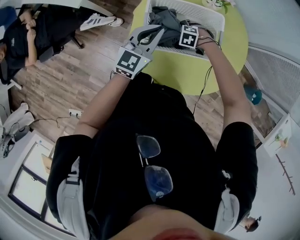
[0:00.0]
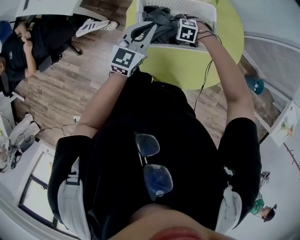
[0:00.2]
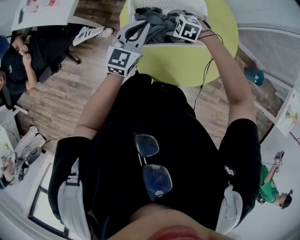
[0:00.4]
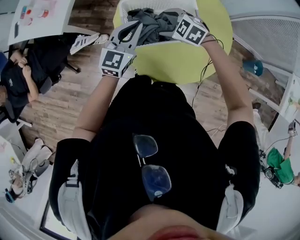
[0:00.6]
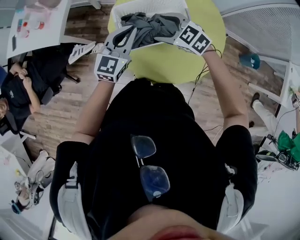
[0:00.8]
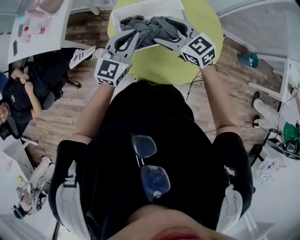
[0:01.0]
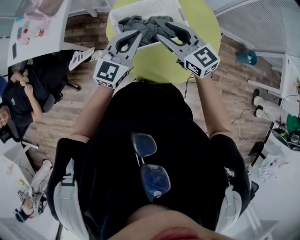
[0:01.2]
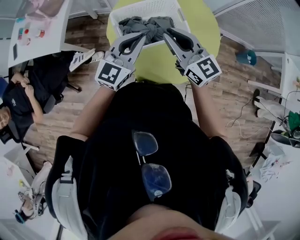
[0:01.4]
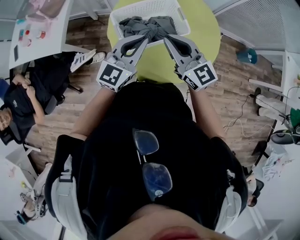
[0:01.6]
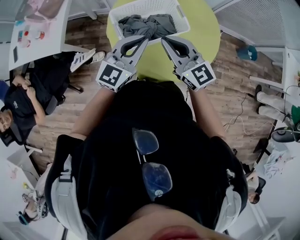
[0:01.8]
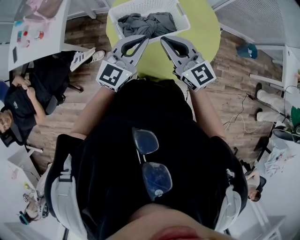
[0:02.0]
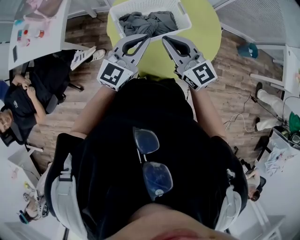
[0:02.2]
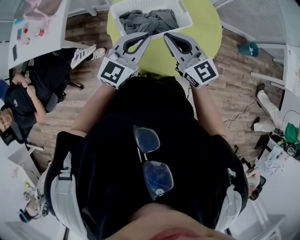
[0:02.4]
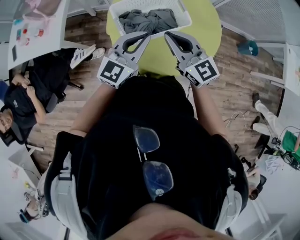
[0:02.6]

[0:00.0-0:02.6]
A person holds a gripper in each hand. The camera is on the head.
0:00.0 to 0:01.2: The left gripper shifts roughly 5 cm upward, and swivels roughly 20 degrees, while the right gripper goes about 35 cm upward, points its fingers some 70 degrees further upward, and closes up.
0:01.2 to 0:02.6: Both grippers move backward, about 5 cm. The right gripper closes its fingers.

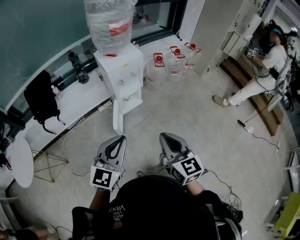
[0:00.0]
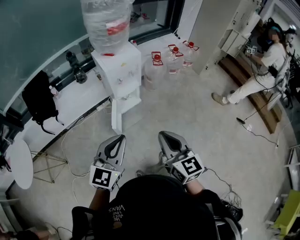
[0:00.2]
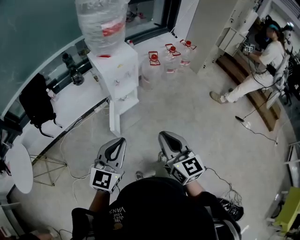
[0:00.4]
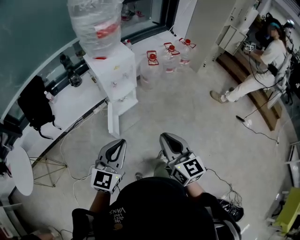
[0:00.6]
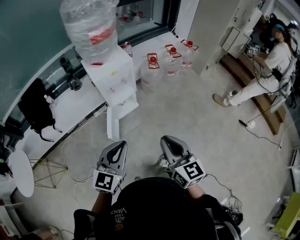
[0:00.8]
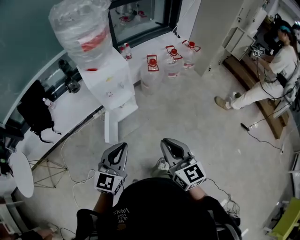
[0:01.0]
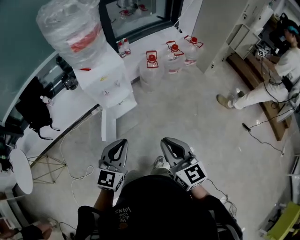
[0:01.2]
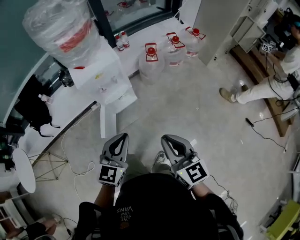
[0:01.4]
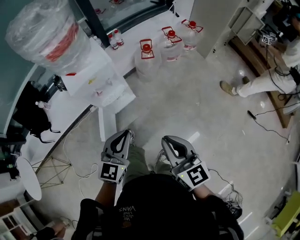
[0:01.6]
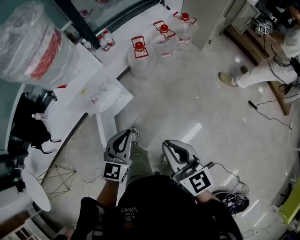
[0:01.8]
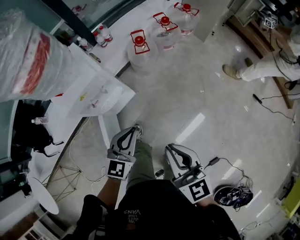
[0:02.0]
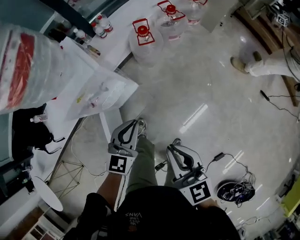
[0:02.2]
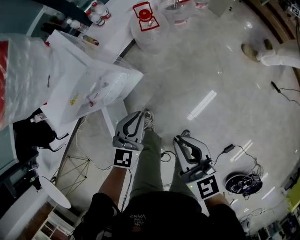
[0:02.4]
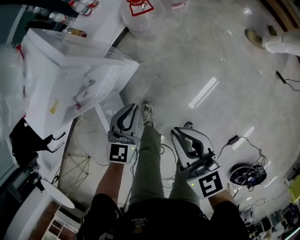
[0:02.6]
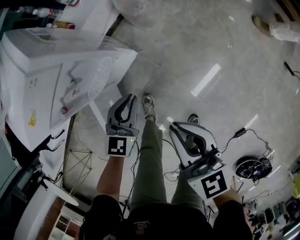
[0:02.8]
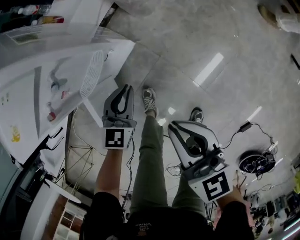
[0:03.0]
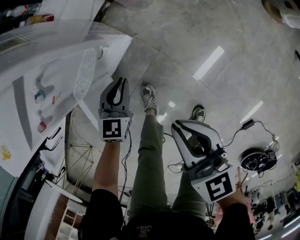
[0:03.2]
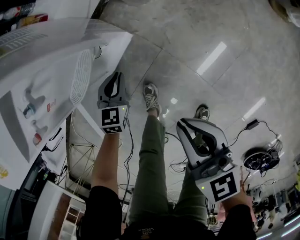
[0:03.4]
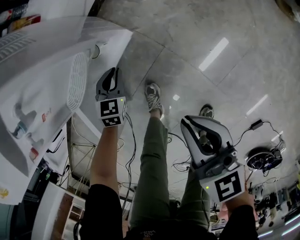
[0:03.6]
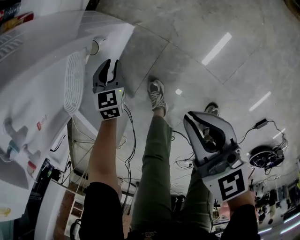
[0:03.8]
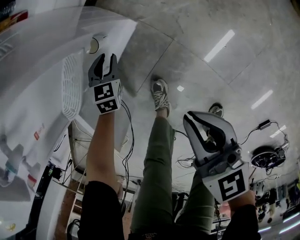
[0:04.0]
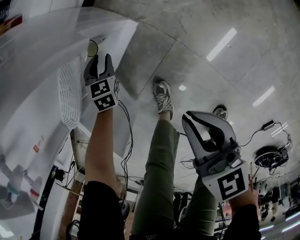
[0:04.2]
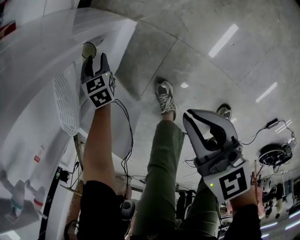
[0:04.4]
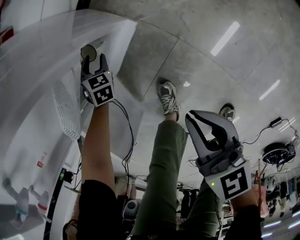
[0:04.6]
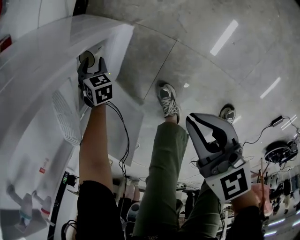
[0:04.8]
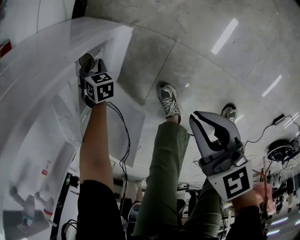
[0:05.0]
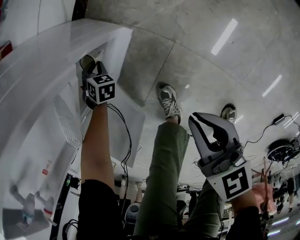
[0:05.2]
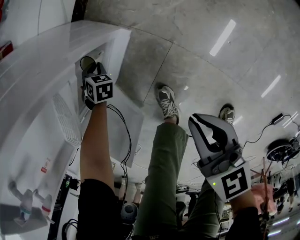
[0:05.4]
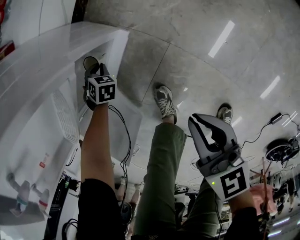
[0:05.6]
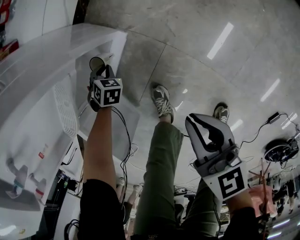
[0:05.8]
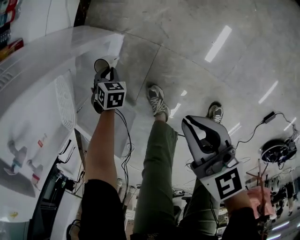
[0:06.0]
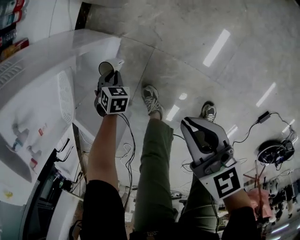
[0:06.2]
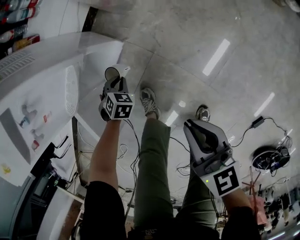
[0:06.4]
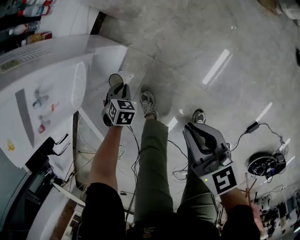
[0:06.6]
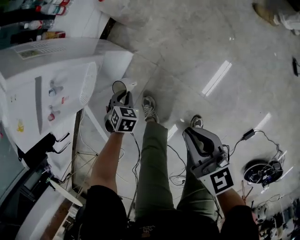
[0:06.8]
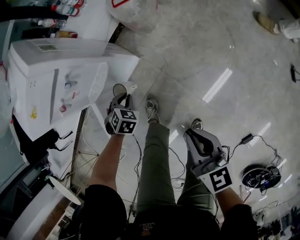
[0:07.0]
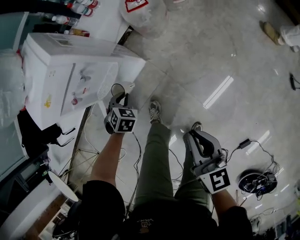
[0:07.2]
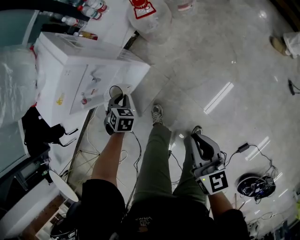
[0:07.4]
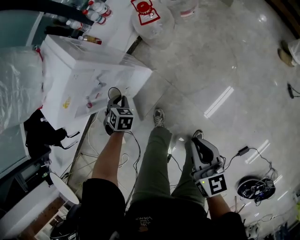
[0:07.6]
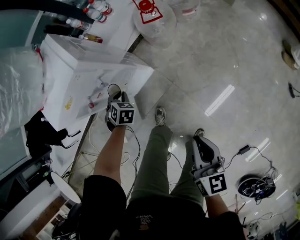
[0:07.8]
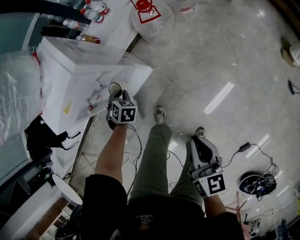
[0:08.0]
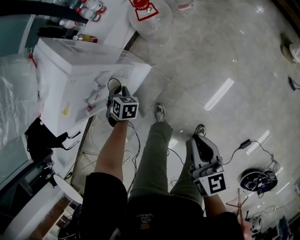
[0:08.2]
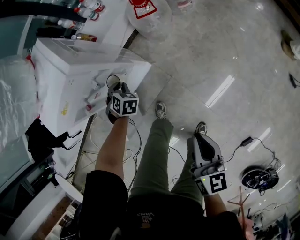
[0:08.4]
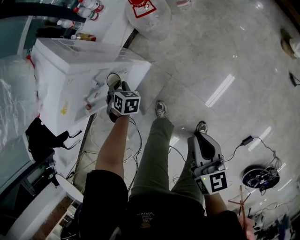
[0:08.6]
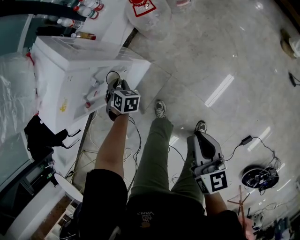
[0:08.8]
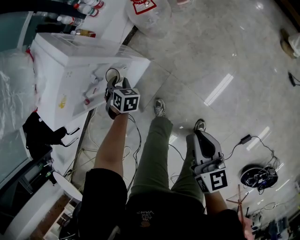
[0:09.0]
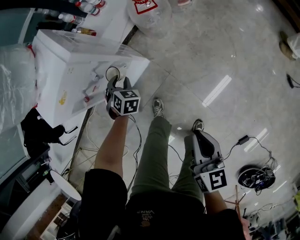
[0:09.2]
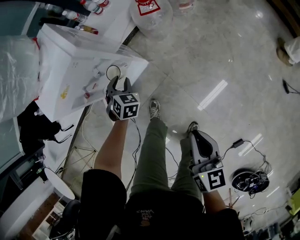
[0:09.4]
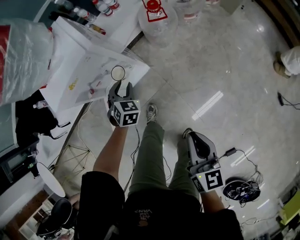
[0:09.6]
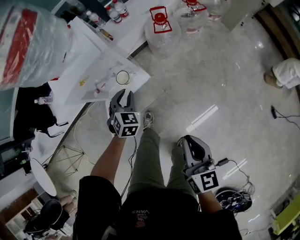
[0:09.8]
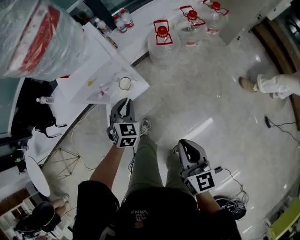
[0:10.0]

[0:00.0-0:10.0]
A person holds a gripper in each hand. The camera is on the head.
0:00.0 to 0:01.4: Both grippers travel together forward and to the right, about 30 cm.
0:01.4 to 0:02.8: The grippers both shift downward and forward by about 40 cm.
0:02.8 to 0:04.2: The left gripper moves downward and to the left, about 40 cm, swivels approximately 30 degrees, and opens. The right gripper is displaced downward by some 30 cm.
0:04.2 to 0:05.8: The left gripper rotates some 30 degrees. The right gripper shifts by approximately 5 cm.
0:05.8 to 0:07.2: The two grippers go roughly 30 cm upward.
0:07.2 to 0:08.6: The left gripper travels forward by roughly 10 cm.
0:08.6 to 0:10.0: The left gripper moves upward and backward, about 25 cm, and swivels about 30 degrees. The right gripper goes some 10 cm upward, and swivels roughly 20 degrees.

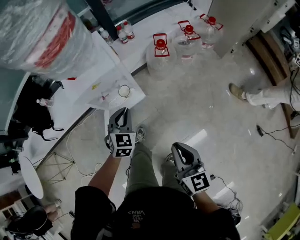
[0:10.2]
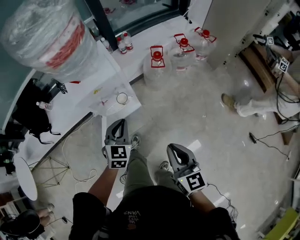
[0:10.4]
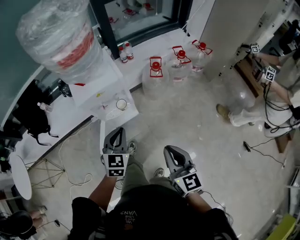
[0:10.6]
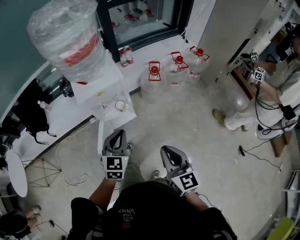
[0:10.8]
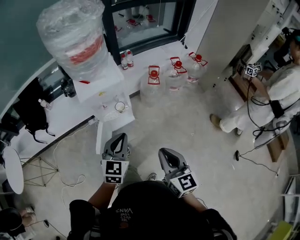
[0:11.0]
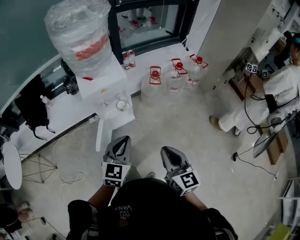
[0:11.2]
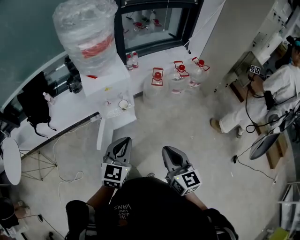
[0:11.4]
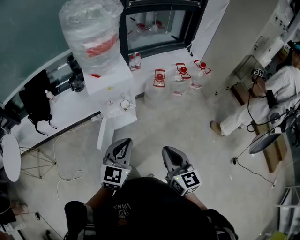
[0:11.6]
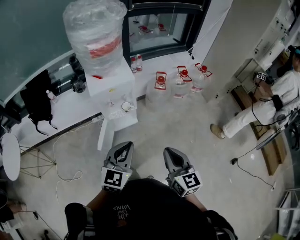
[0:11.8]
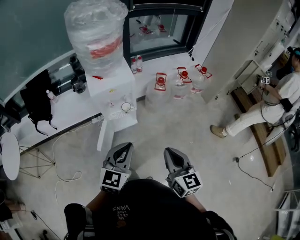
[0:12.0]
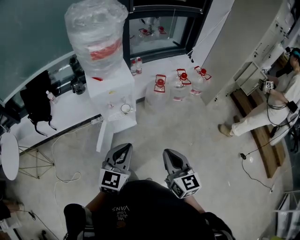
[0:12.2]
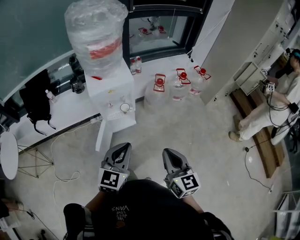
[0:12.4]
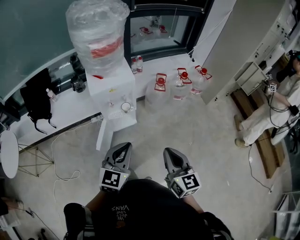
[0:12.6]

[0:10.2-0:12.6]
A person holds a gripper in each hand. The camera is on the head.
0:10.2 to 0:11.4: The left gripper heads backward and upward, covering approximately 30 cm, and changes its angle by some 20 degrees. Meanwhile the right gripper moves upward and backward, roughly 15 cm.
0:11.4 to 0:12.6: The grippers move only a little.

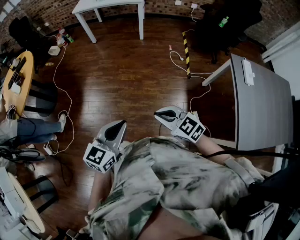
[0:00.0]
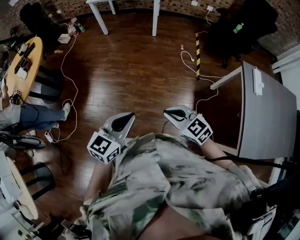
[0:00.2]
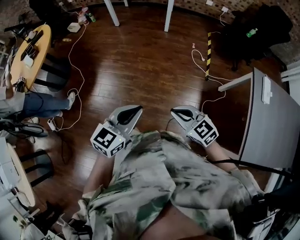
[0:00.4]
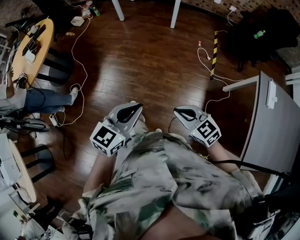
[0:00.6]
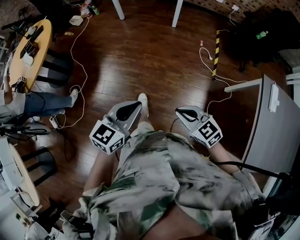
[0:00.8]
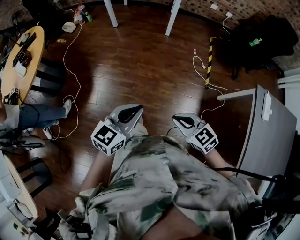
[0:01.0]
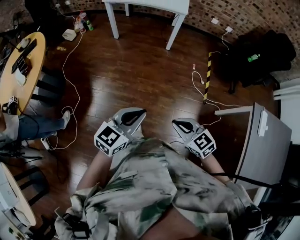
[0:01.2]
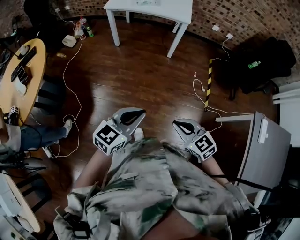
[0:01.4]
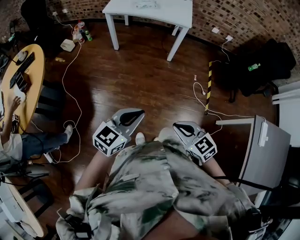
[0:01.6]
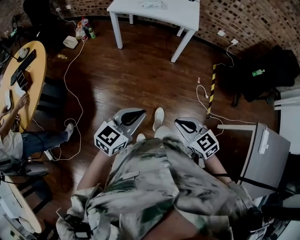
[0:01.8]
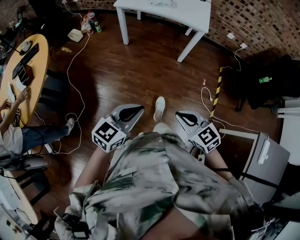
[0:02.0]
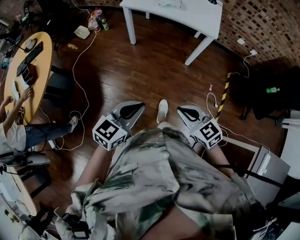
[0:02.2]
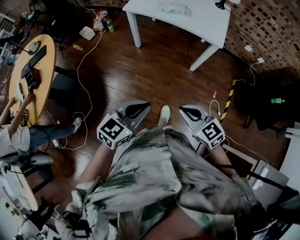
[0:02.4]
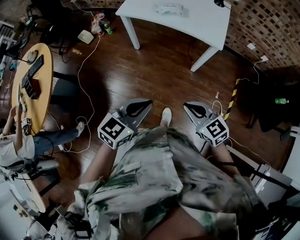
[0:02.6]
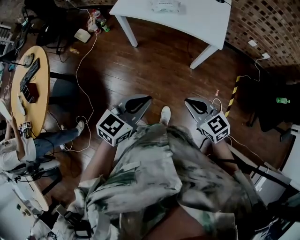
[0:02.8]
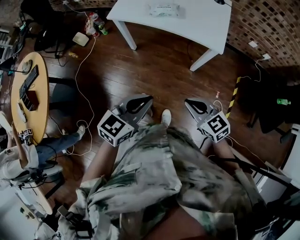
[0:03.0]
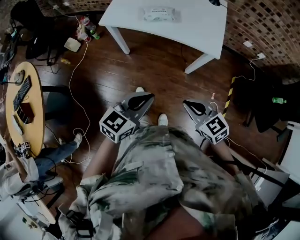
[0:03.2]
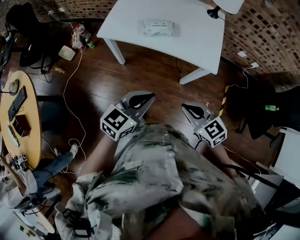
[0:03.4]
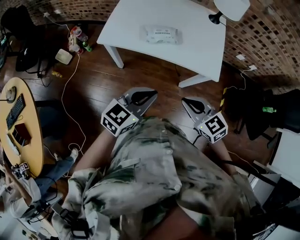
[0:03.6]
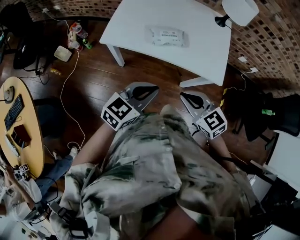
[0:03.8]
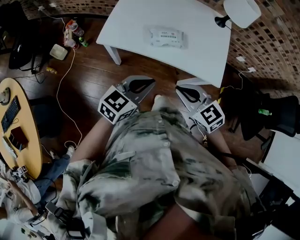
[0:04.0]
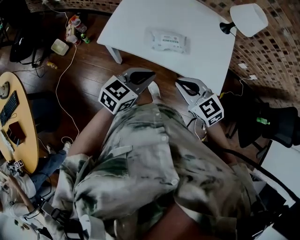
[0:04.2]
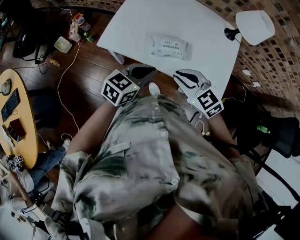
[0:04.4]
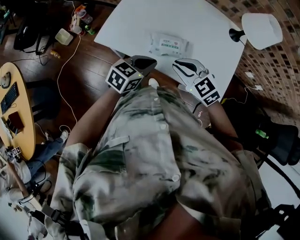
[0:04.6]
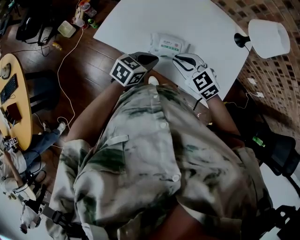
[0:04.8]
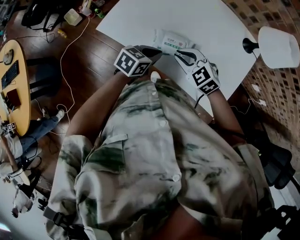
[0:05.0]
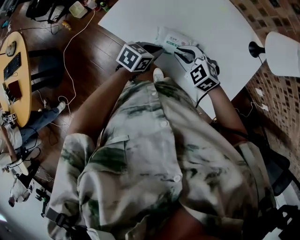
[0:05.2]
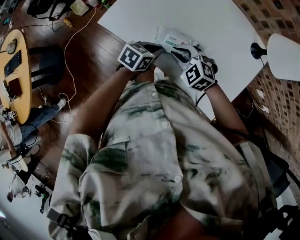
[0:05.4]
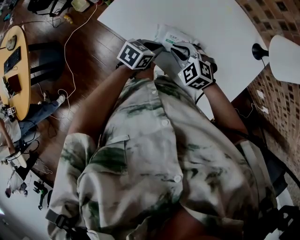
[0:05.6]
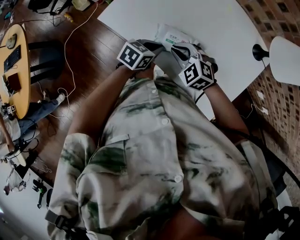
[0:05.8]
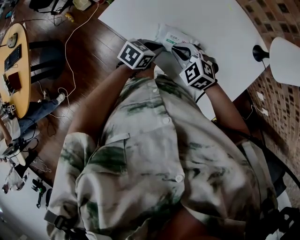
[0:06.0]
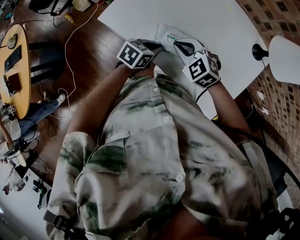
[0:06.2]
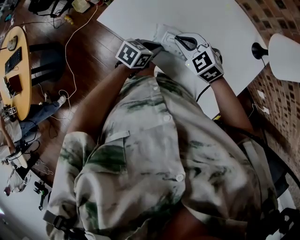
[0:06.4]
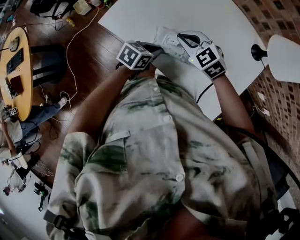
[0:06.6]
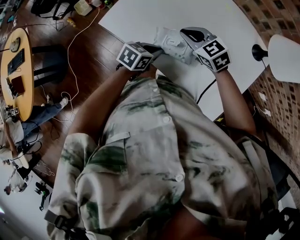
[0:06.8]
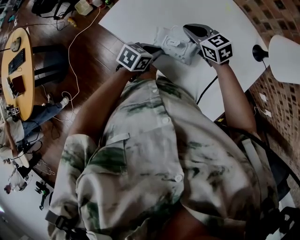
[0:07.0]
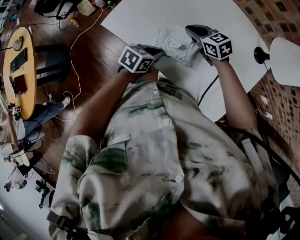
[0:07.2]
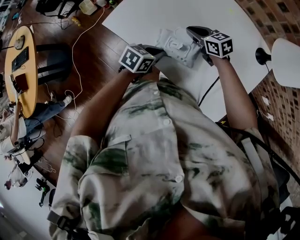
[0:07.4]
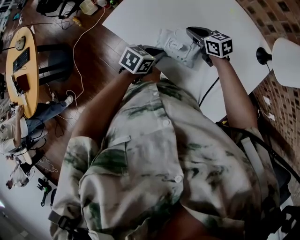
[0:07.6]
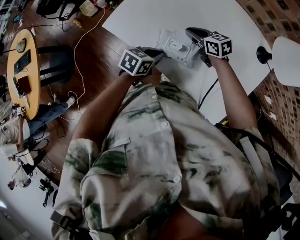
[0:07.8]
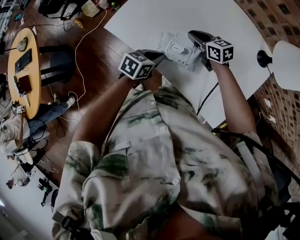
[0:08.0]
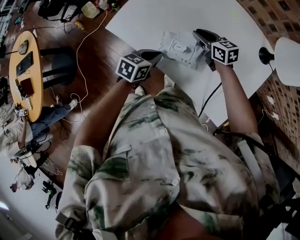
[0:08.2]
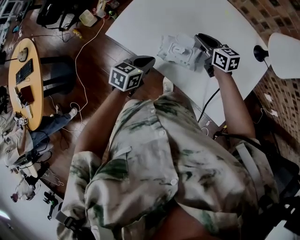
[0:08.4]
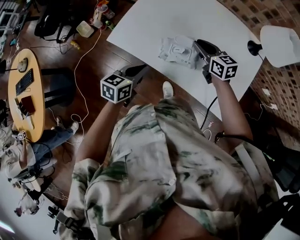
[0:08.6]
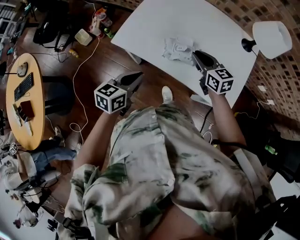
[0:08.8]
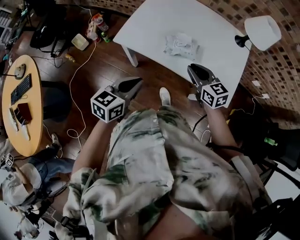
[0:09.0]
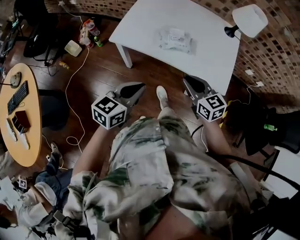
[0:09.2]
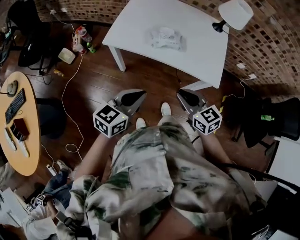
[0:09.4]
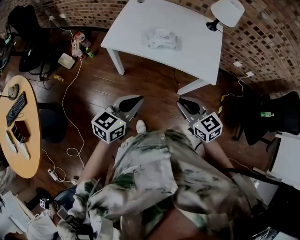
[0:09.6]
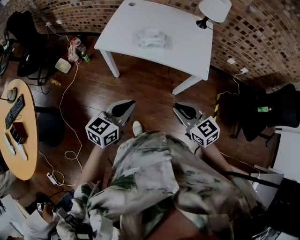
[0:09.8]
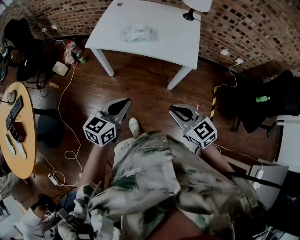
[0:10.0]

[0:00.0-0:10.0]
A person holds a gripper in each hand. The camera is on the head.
0:00.0 to 0:01.4: Both grippers travel together forward, approximately 35 cm.
0:01.4 to 0:02.8: Both grippers move forward, approximately 40 cm.
0:02.8 to 0:04.2: The two grippers go approximately 35 cm forward.
0:04.2 to 0:05.8: The right gripper is displaced forward and downward by some 25 cm, and rotates roughly 40 degrees. Meanwhile the left gripper goes about 25 cm downward and forward, and swivels some 30 degrees.
0:05.8 to 0:07.2: The right gripper shifts by some 15 cm, and swivels some 40 degrees.
0:07.2 to 0:08.6: The right gripper moves upward, approximately 5 cm, and rotates approximately 30 degrees. Meanwhile the left gripper changes place by approximately 15 cm.
0:08.6 to 0:10.0: The right gripper travels backward by approximately 60 cm, while the left gripper is displaced backward by some 35 cm, and turns by about 20 degrees.
